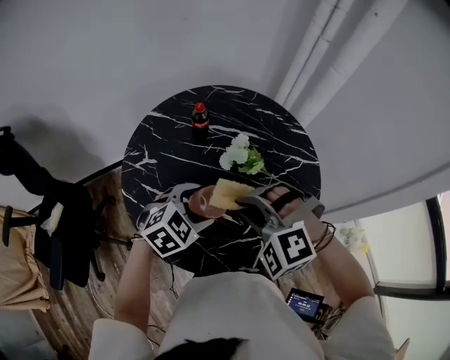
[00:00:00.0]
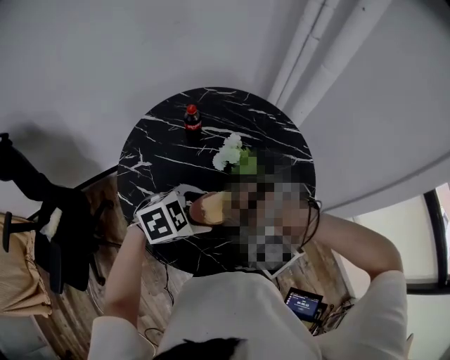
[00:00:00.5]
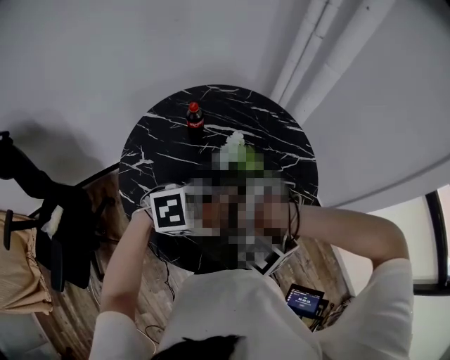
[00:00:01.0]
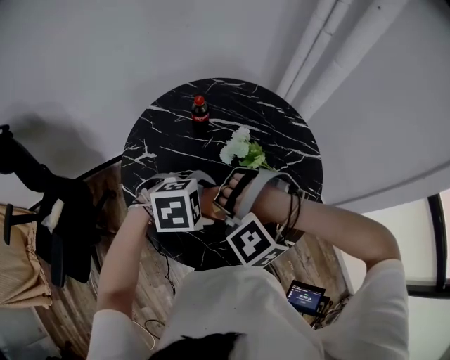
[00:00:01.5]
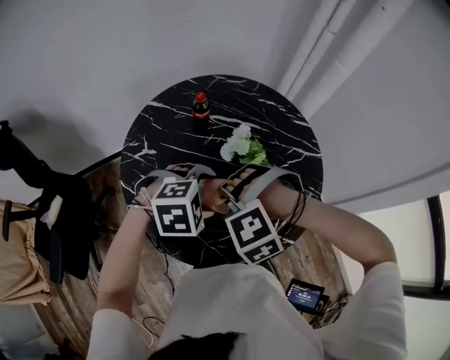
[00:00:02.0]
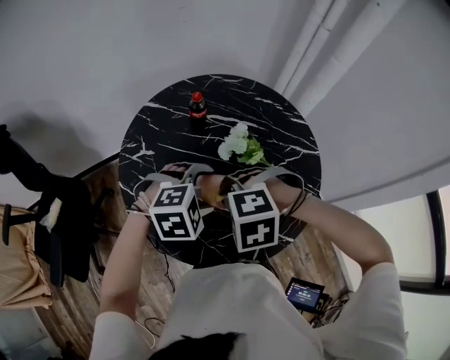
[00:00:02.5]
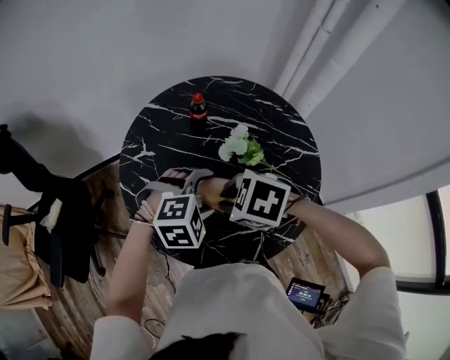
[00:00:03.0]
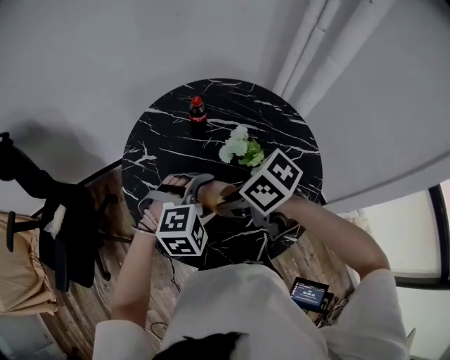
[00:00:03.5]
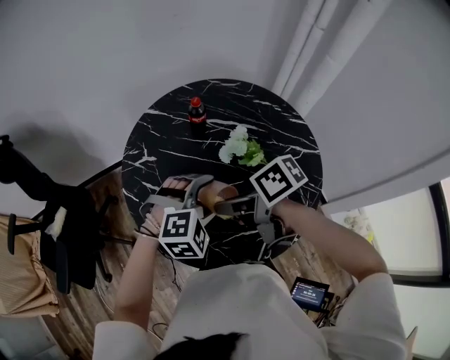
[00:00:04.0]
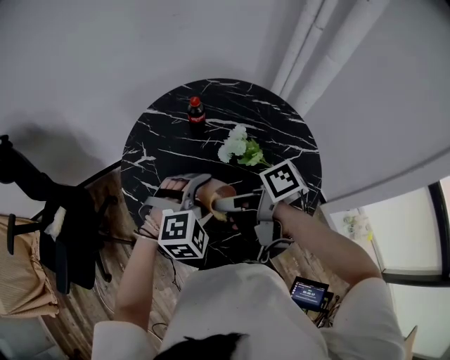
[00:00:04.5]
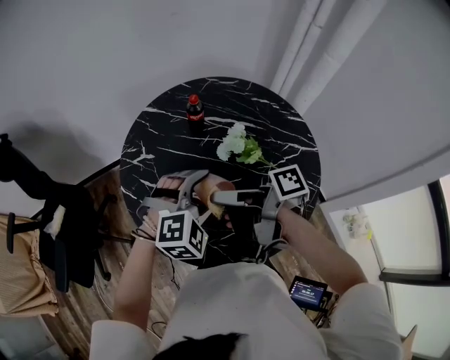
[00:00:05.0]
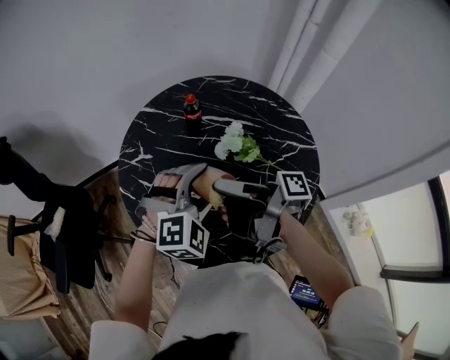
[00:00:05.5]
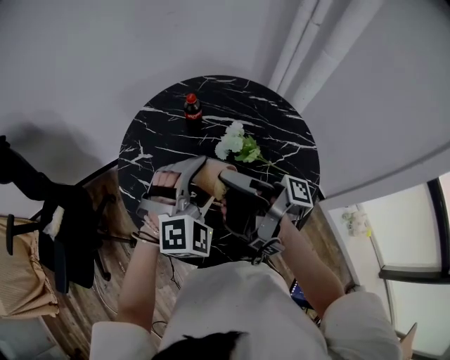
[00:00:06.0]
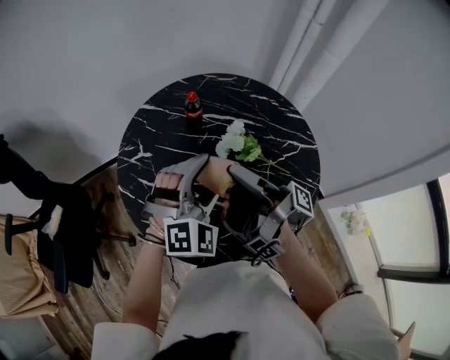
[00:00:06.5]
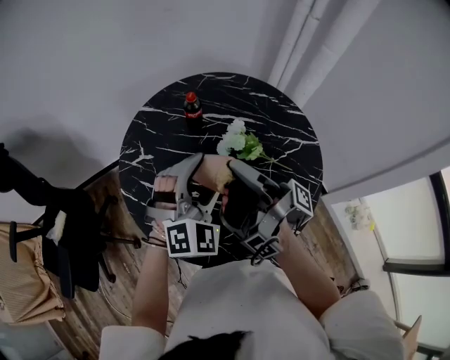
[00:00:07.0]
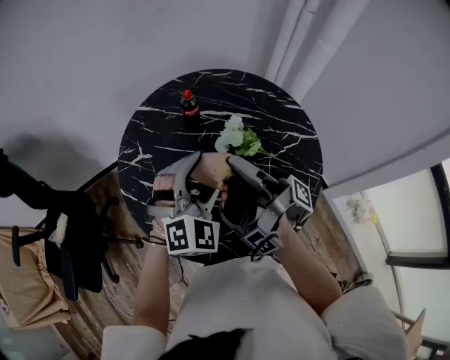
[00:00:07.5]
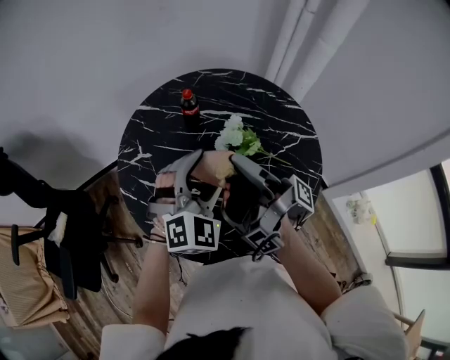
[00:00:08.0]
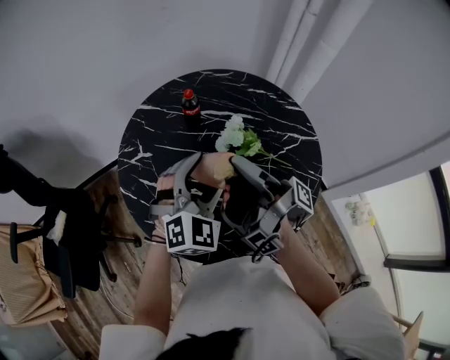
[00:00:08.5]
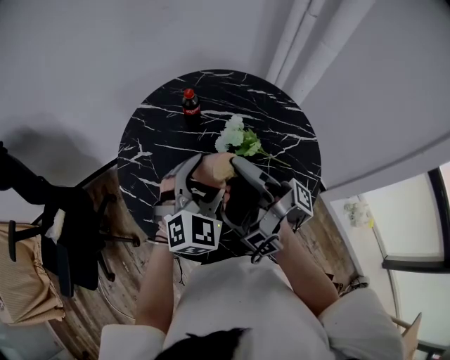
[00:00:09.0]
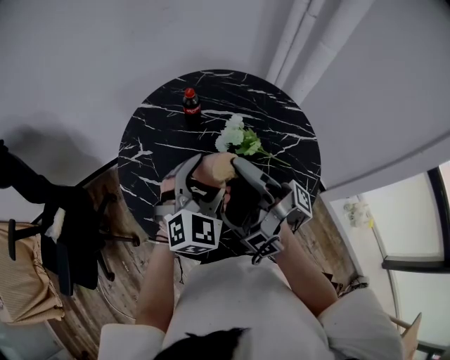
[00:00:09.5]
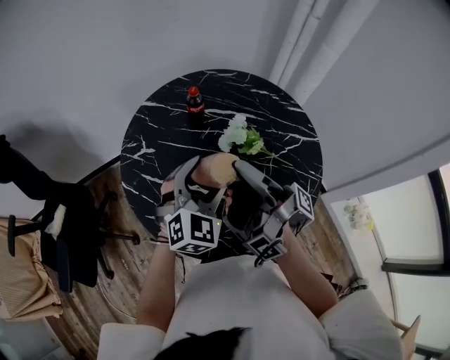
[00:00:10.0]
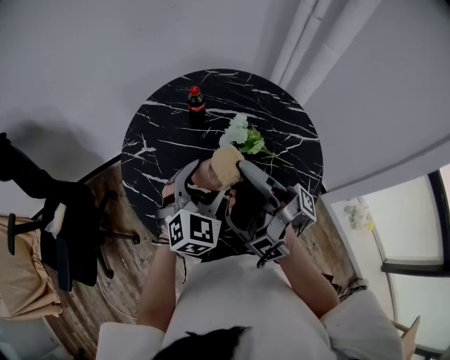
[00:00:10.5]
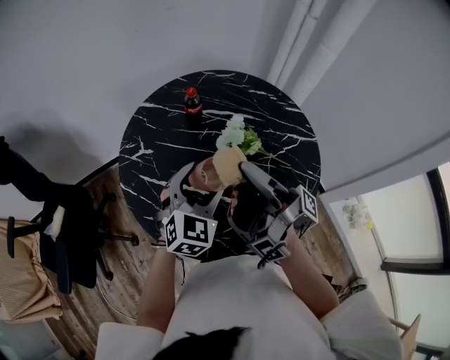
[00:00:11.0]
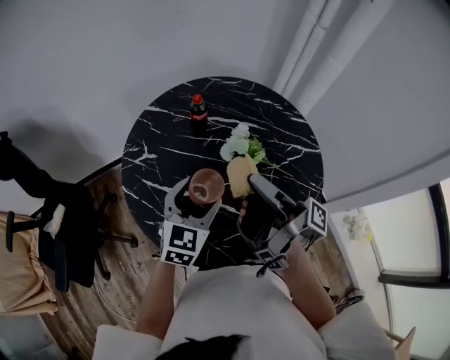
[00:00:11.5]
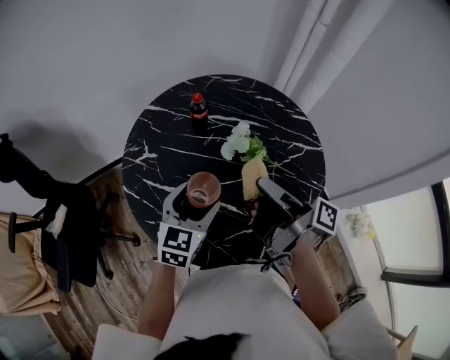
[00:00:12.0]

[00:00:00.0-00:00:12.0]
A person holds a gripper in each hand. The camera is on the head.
00:00:00.0 to 00:00:02.0: The right gripper ends up roughly 5 cm from where it was, and changes its angle by about 30 degrees; the left gripper turns by roughly 30 degrees.
00:00:02.0 to 00:00:04.0: The left gripper swivels roughly 20 degrees, while the right gripper twists some 110 degrees clockwise, seen from behind.
00:00:04.0 to 00:00:06.0: The grippers both shift upward by approximately 5 cm. The left gripper turns by some 20 degrees, while the right gripper points its fingers roughly 40 degrees further upward.
00:00:06.0 to 00:00:08.0: The grippers stay close to where they were, moving slightly.
00:00:08.0 to 00:00:10.0: The grippers make only small movements.
00:00:10.0 to 00:00:12.0: The right gripper heads to the right, covering about 5 cm, and turns by about 30 degrees, while the left gripper shifts by roughly 5 cm, and turns by approximately 30 degrees.

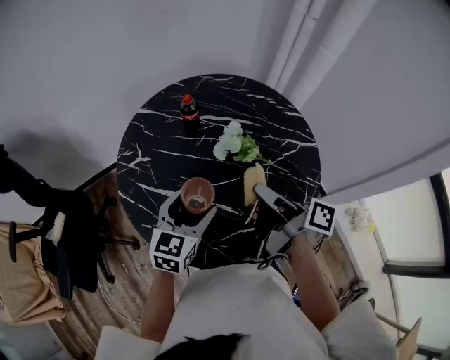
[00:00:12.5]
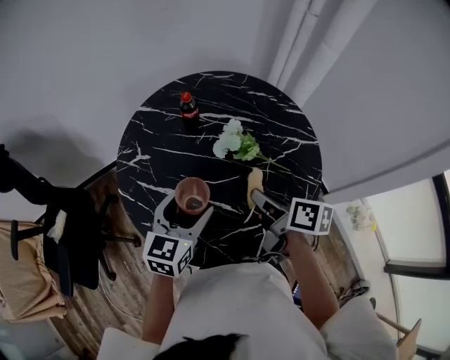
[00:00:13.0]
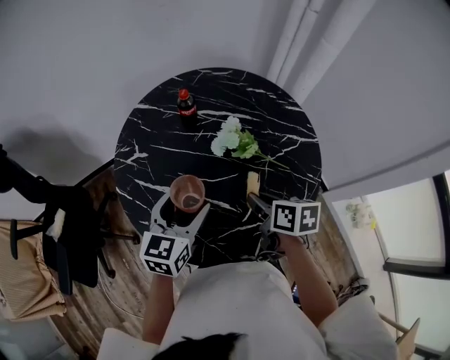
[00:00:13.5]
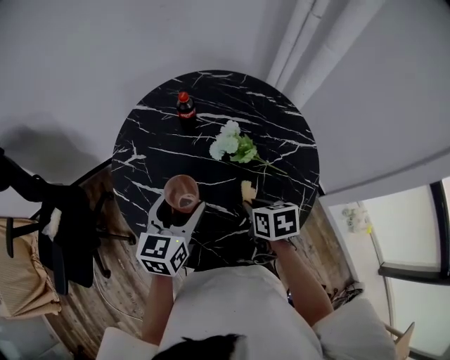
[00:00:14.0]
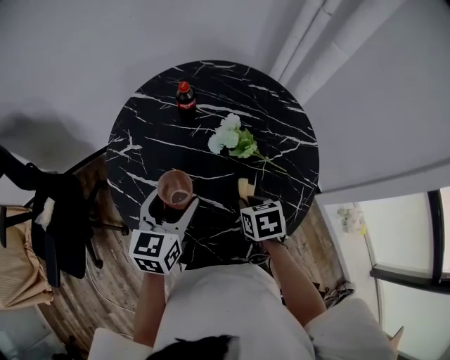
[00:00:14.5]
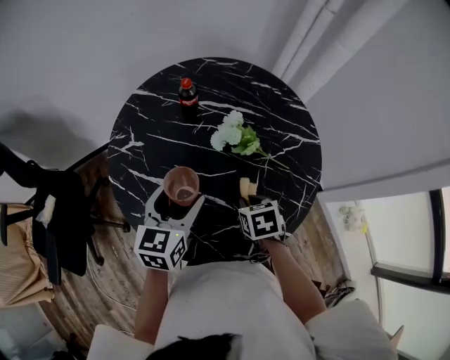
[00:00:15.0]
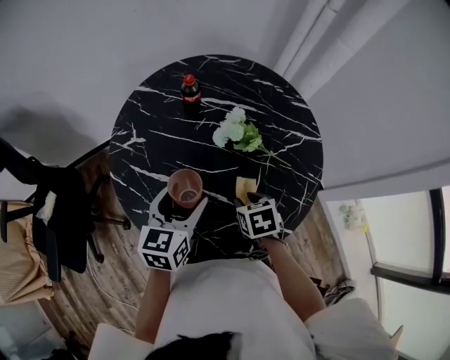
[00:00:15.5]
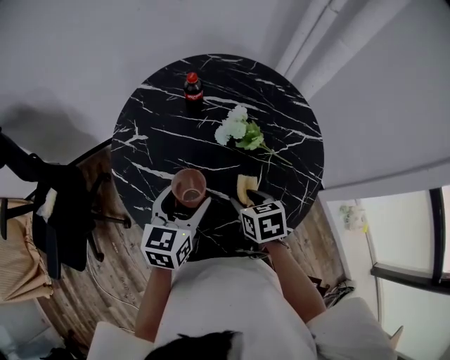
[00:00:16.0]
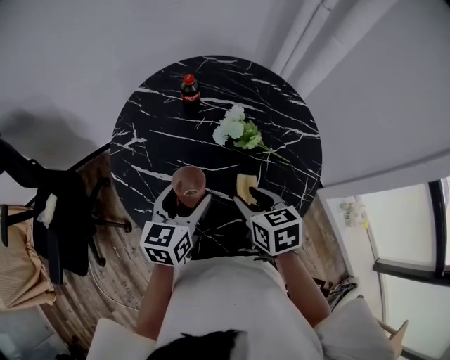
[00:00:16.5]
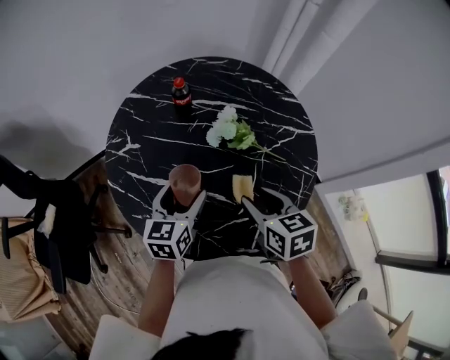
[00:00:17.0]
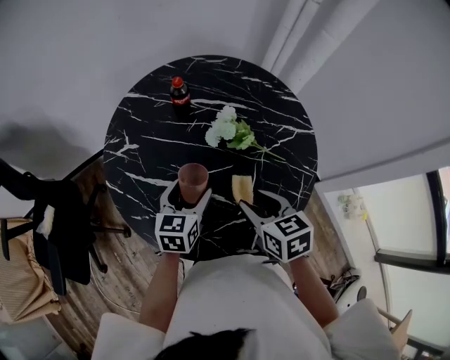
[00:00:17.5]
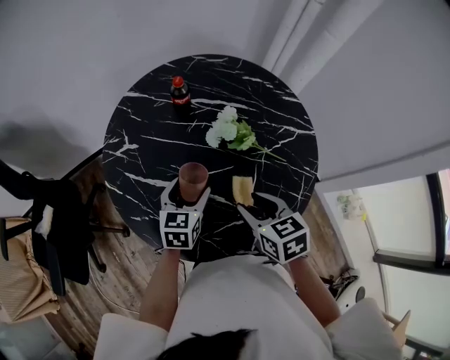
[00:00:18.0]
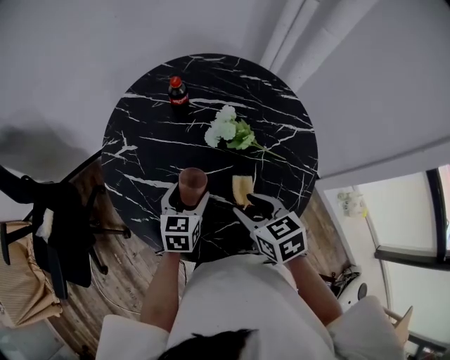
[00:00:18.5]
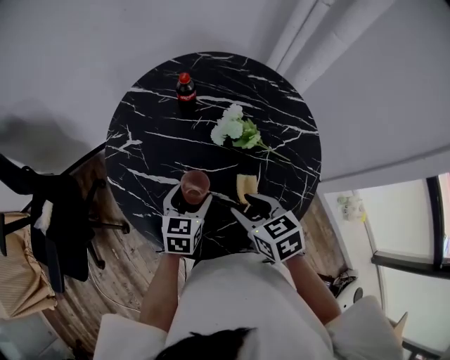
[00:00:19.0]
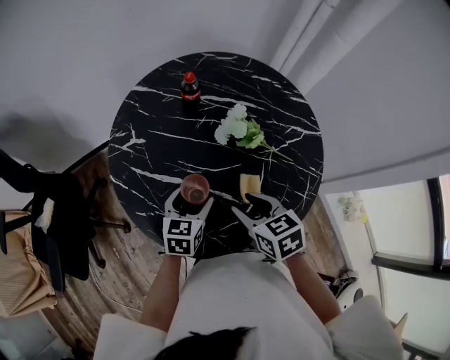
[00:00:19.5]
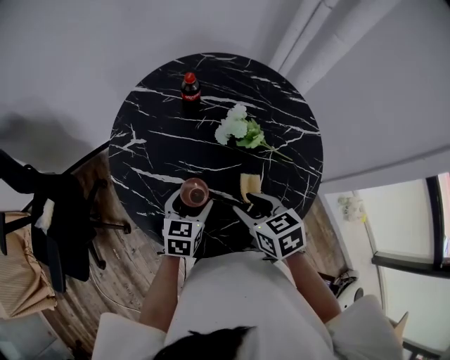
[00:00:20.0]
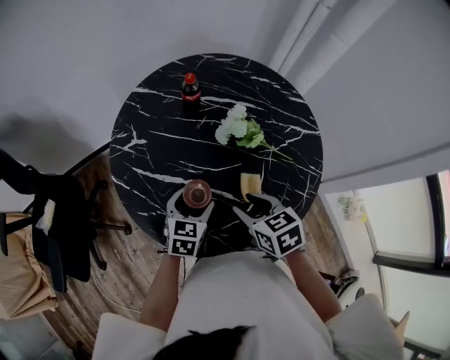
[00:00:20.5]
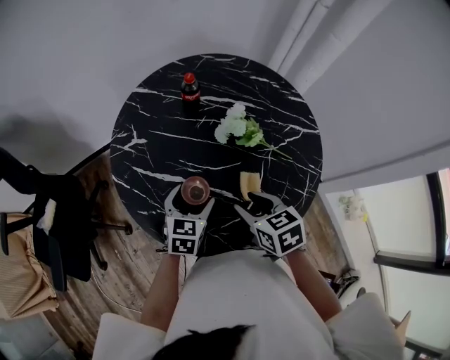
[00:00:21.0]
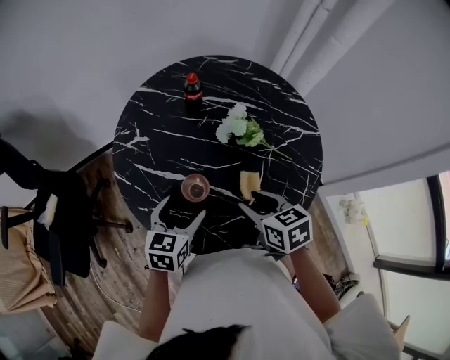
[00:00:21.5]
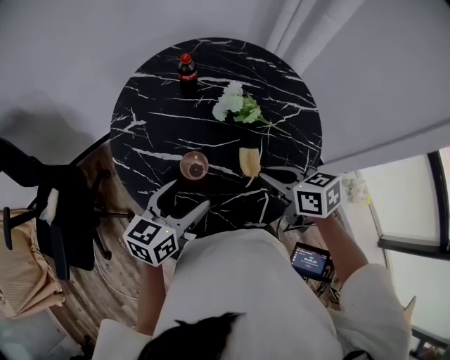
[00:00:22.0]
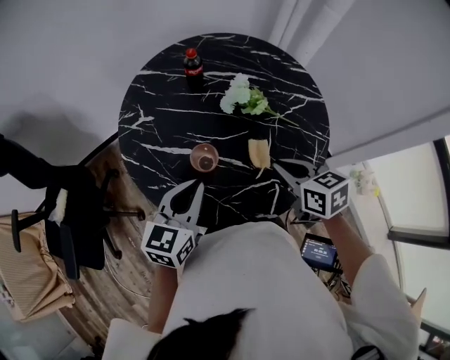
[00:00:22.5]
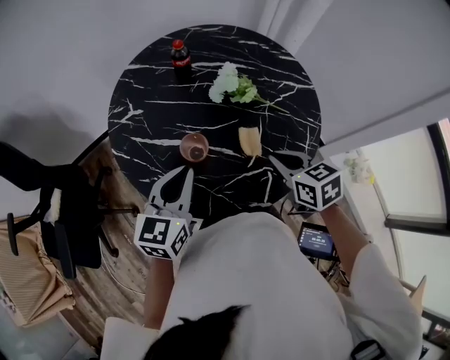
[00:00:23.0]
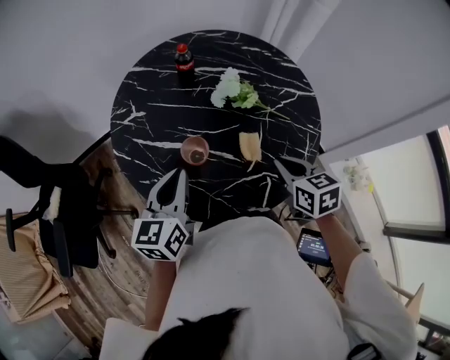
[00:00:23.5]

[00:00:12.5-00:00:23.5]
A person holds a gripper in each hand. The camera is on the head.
00:00:12.5 to 00:00:14.5: The right gripper moves downward, roughly 15 cm, and tilts its fingers some 60 degrees downward.
00:00:14.5 to 00:00:16.0: The right gripper opens its fingers.
00:00:16.0 to 00:00:18.0: The left gripper travels downward by some 10 cm. Meanwhile the right gripper heads upward, covering roughly 5 cm.
00:00:18.0 to 00:00:20.0: The left gripper changes place by some 5 cm.
00:00:20.0 to 00:00:21.5: The left gripper moves upward, approximately 5 cm.
00:00:21.5 to 00:00:23.5: The left gripper goes about 10 cm upward, and closes, while the right gripper goes roughly 5 cm to the right, and closes.

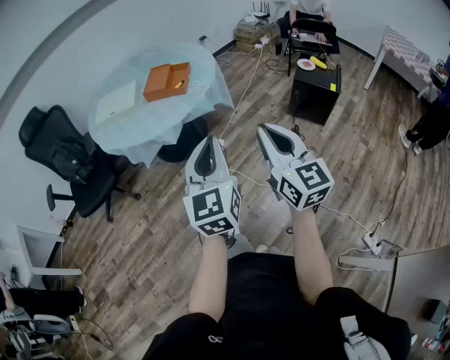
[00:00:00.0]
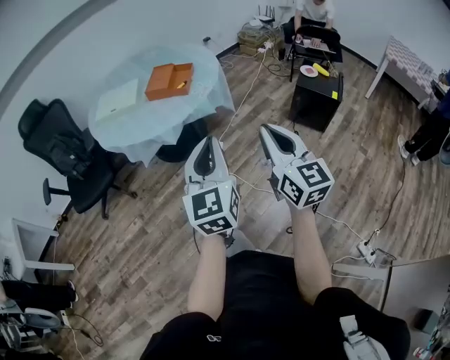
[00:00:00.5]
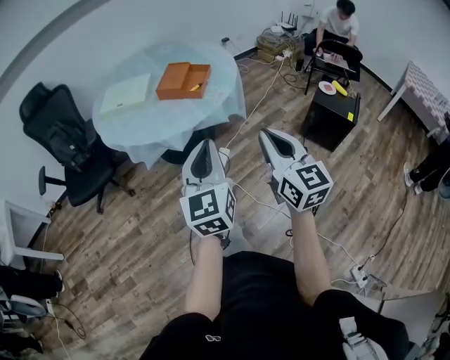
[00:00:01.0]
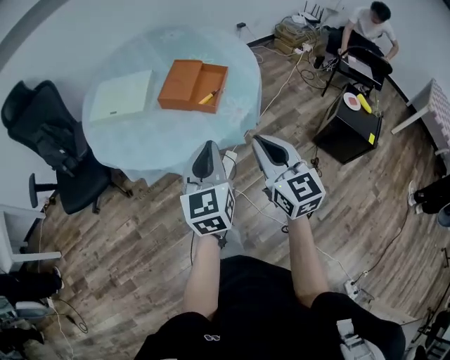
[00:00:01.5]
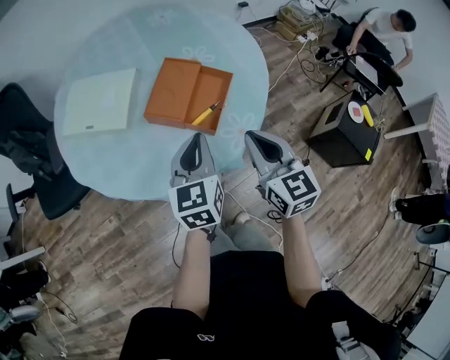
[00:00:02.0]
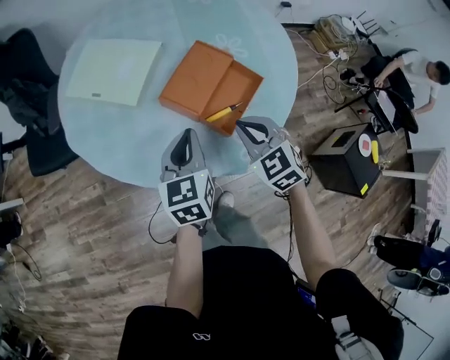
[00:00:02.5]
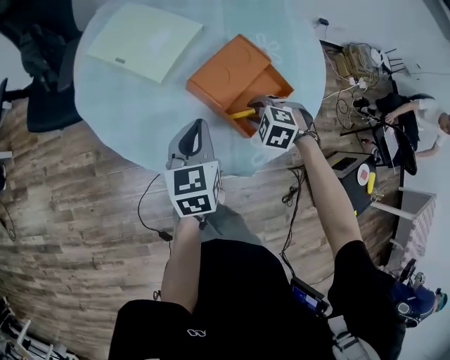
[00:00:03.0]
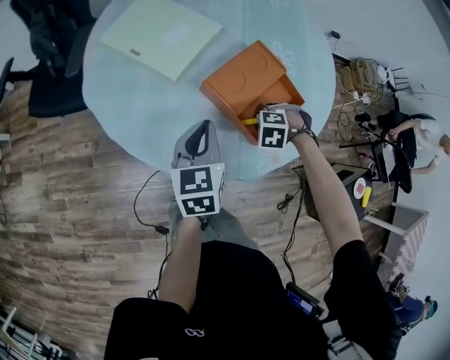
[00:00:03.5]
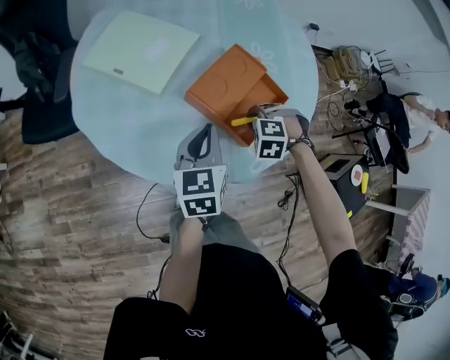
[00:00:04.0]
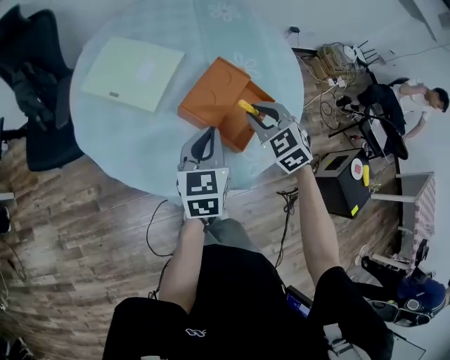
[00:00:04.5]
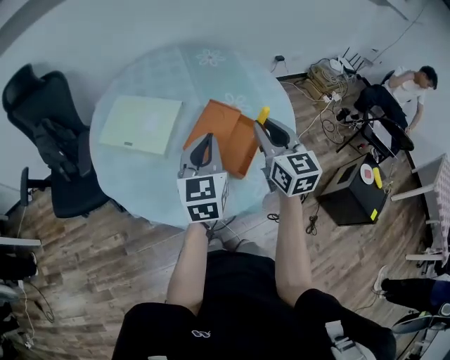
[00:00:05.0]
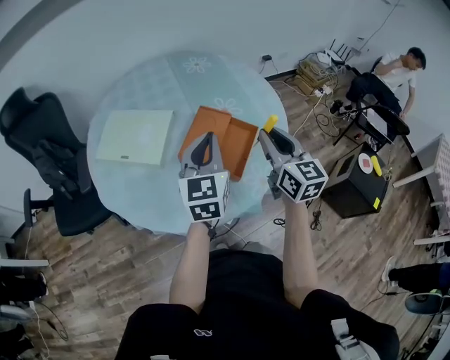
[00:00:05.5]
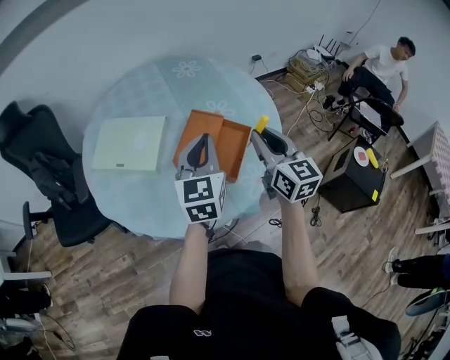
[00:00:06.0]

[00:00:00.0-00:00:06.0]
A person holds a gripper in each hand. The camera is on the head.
00:00:00.0 to 00:00:02.0: The pair of grippers is taken forward, roughly 60 cm. The right gripper changes its angle by roughly 30 degrees. Meanwhile the left gripper changes its angle by roughly 20 degrees.
00:00:02.0 to 00:00:04.0: The left gripper changes place by approximately 15 cm; the right gripper is displaced downward by about 20 cm, and tilts its fingers some 60 degrees downward.
00:00:04.0 to 00:00:06.0: The right gripper moves upward, approximately 30 cm, and tips its fingers upward by some 70 degrees. The left gripper goes roughly 15 cm upward, and changes its angle by approximately 30 degrees.
